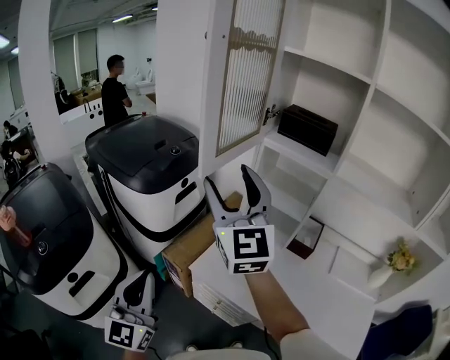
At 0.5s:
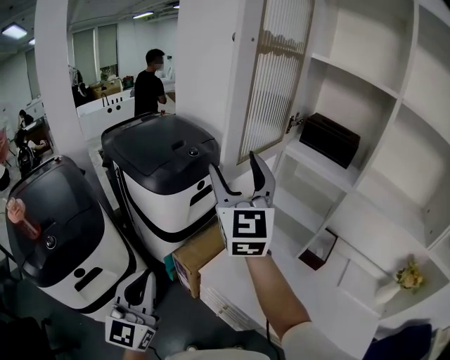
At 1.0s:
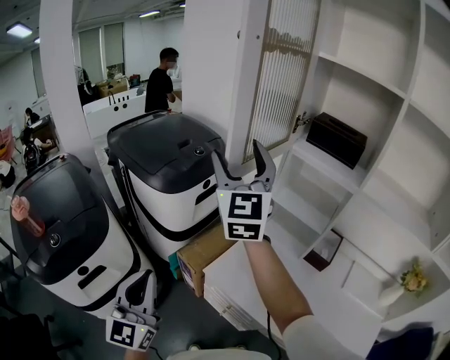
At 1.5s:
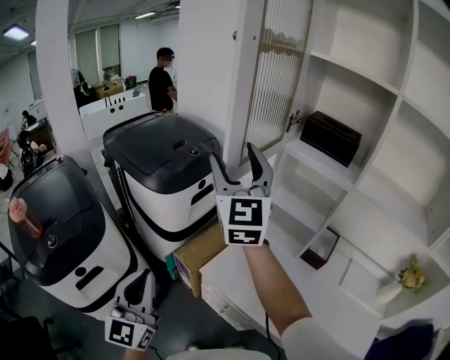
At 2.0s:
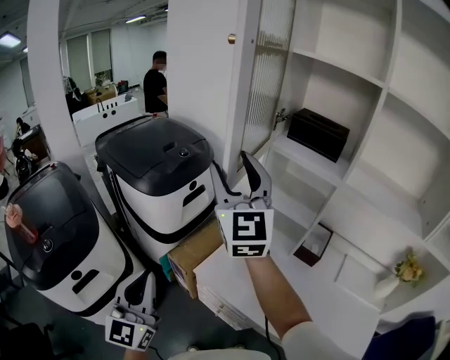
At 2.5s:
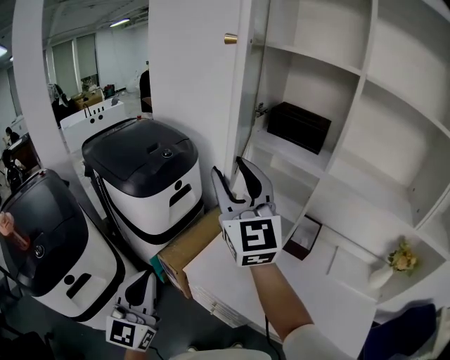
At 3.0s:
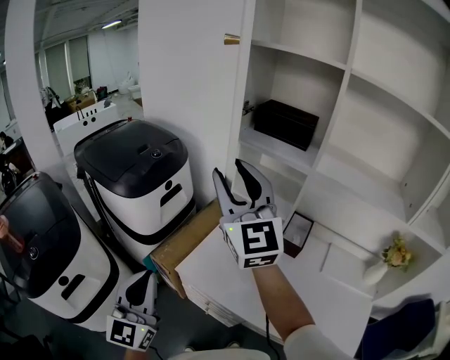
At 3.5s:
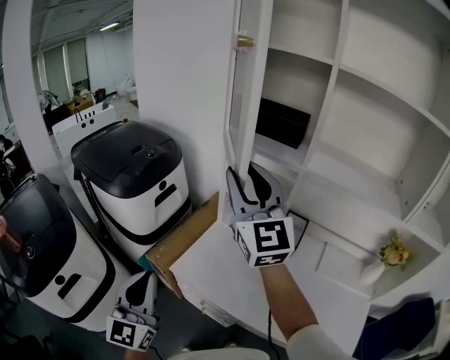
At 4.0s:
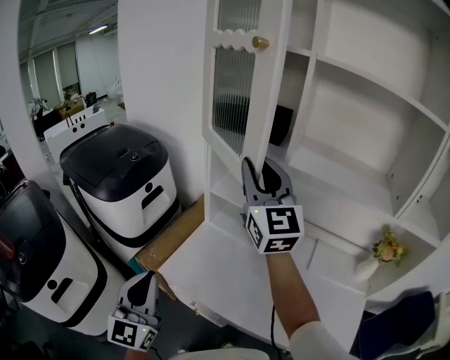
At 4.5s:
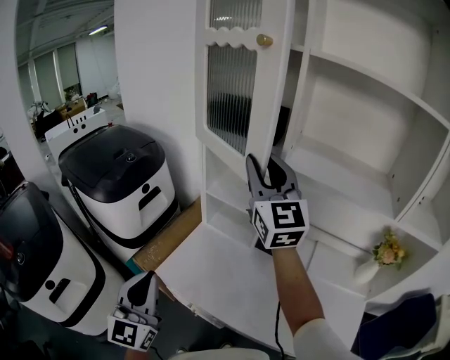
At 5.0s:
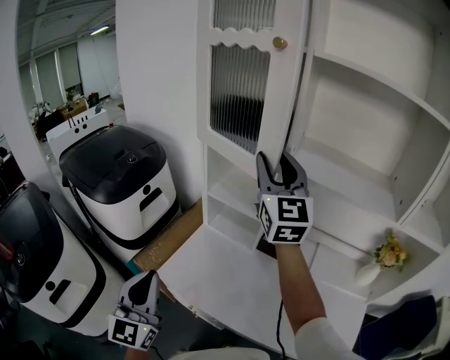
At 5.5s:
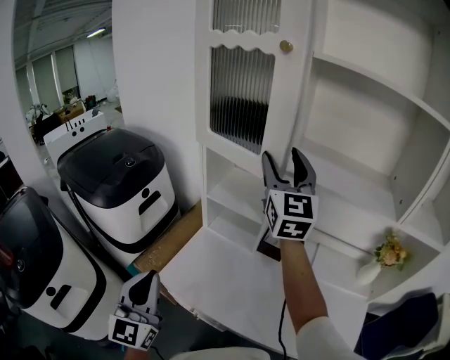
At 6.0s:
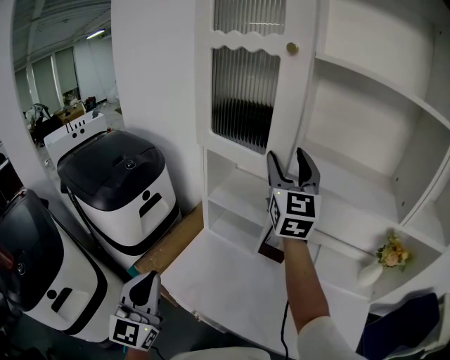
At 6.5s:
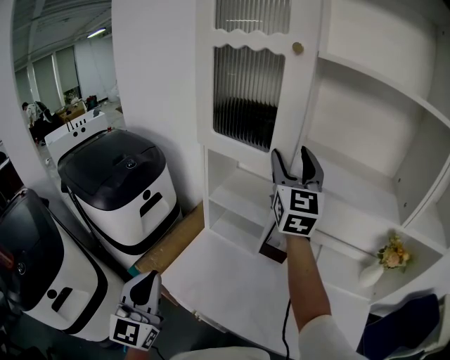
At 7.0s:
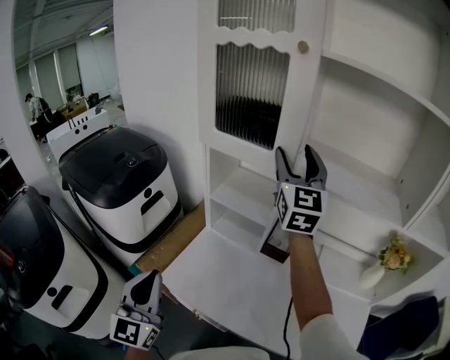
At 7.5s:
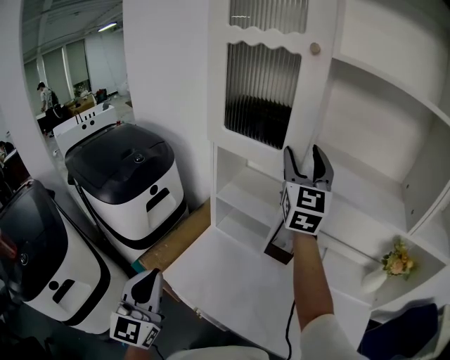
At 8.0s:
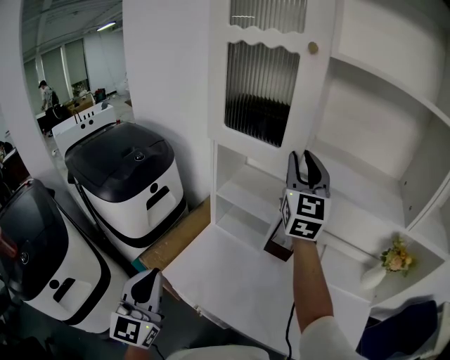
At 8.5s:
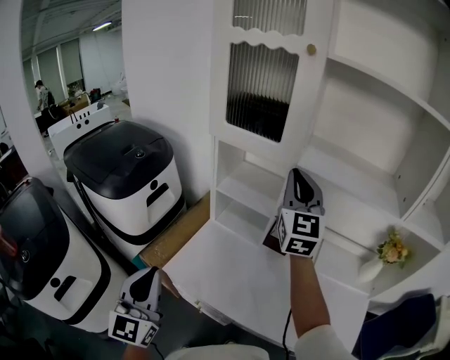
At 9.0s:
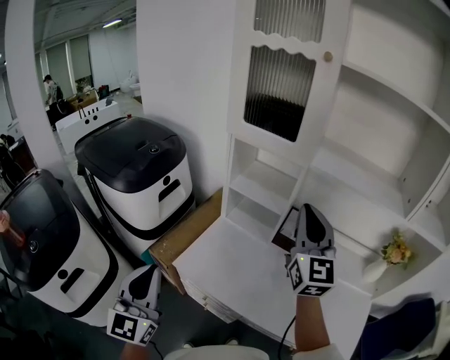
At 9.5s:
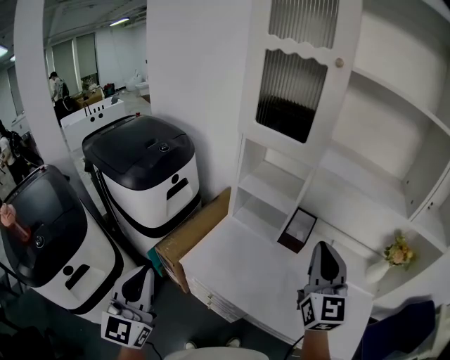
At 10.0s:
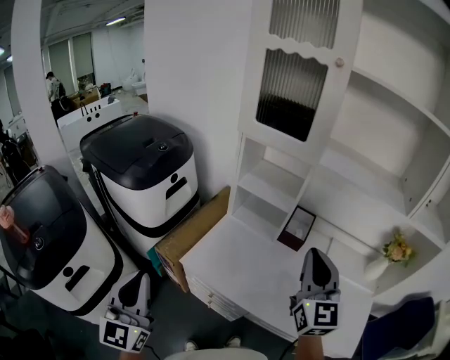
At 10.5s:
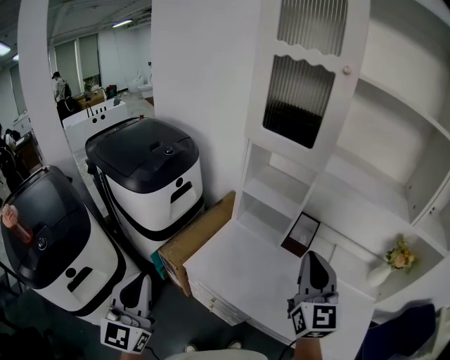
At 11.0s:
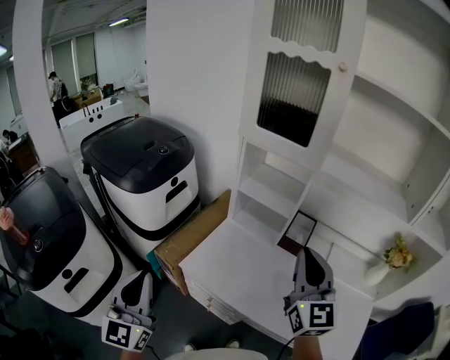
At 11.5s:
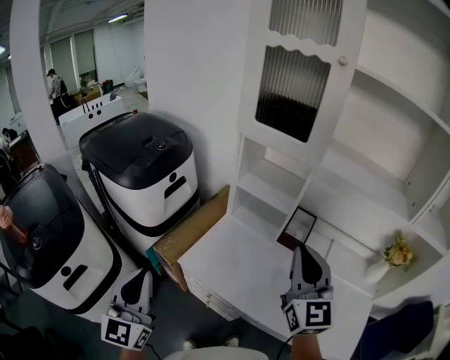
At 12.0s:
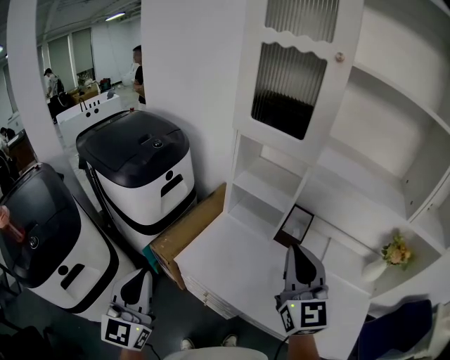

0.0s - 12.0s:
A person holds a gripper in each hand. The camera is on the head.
2.0s - 4.0s: The right gripper travels to the right by roughly 25 cm, and closes its fingers. The left gripper travels to the right by approximately 15 cm.
4.0s - 6.0s: The right gripper goes some 10 cm to the right and forward, and opens.
6.0s - 8.0s: The right gripper closes its fingers.
8.0s - 10.0s: The left gripper heads backward and to the left, covering approximately 15 cm. The right gripper moves backward and downward, roughly 30 cm, and closes.
10.0s - 12.0s: The grippers stay close to where they were, moving slightly.

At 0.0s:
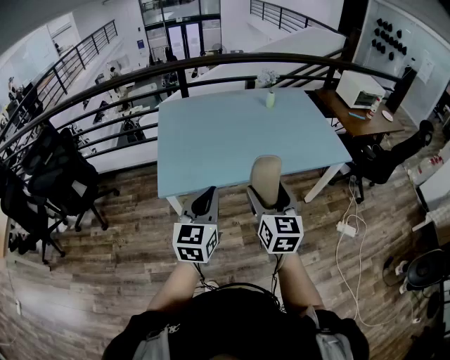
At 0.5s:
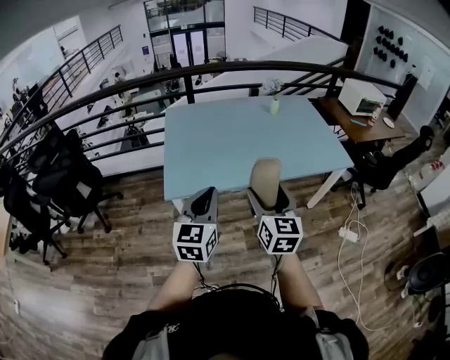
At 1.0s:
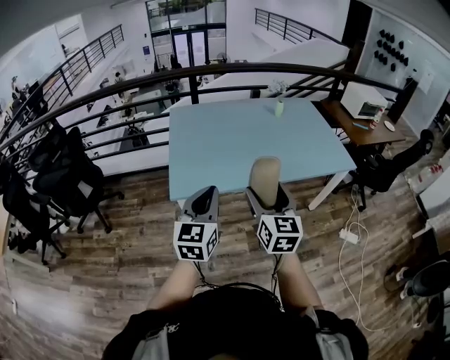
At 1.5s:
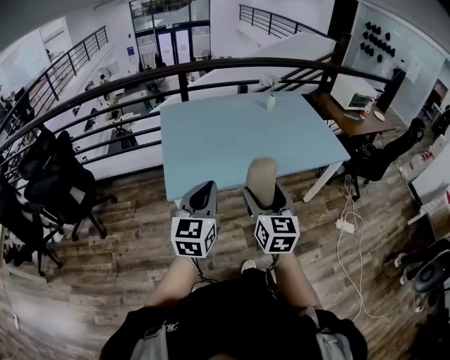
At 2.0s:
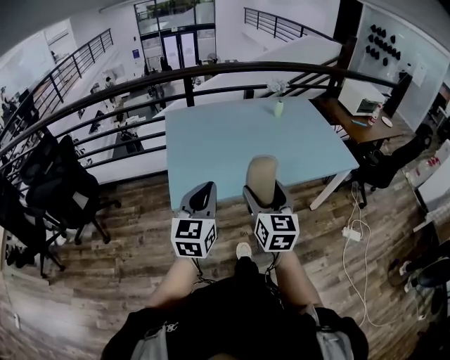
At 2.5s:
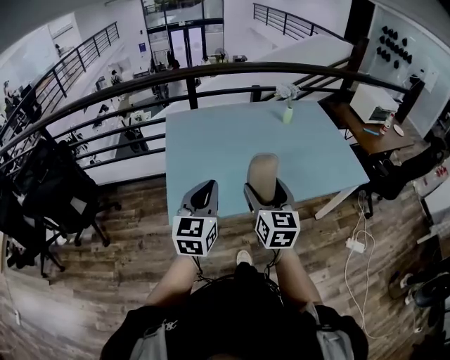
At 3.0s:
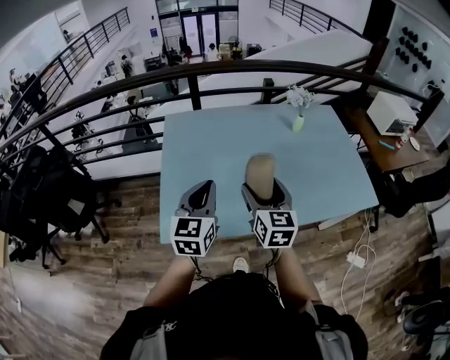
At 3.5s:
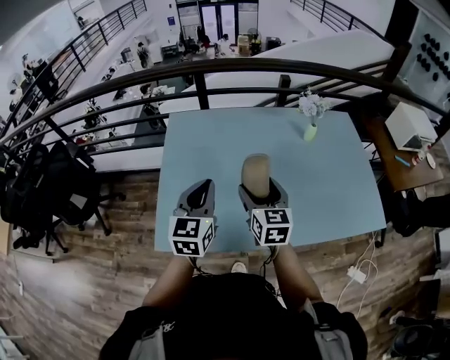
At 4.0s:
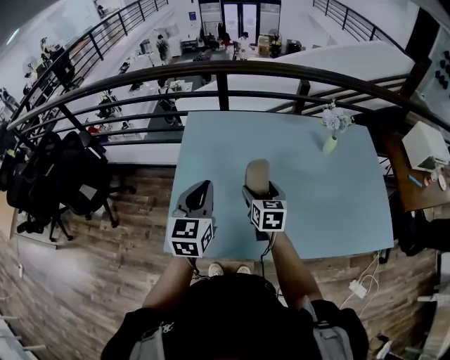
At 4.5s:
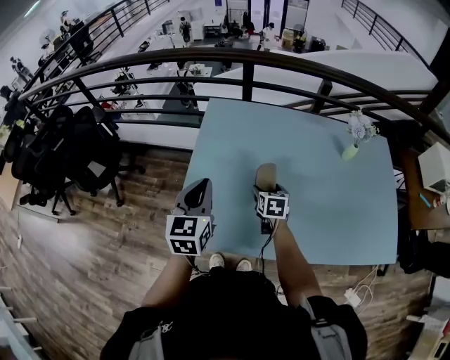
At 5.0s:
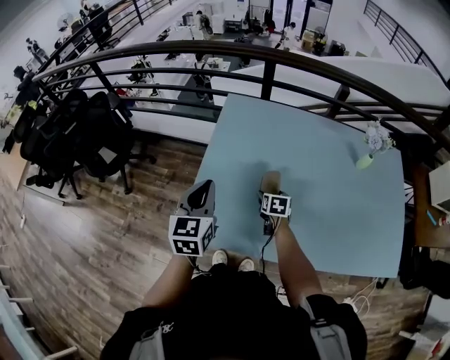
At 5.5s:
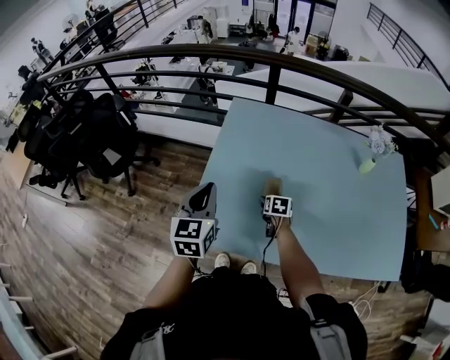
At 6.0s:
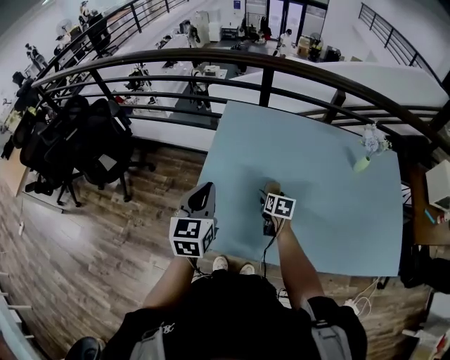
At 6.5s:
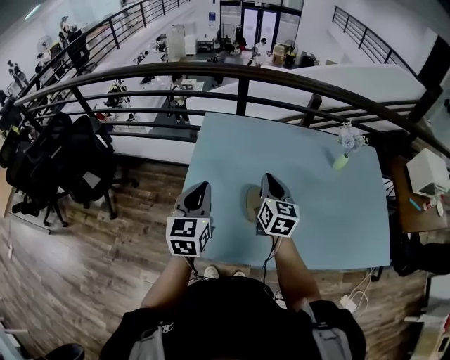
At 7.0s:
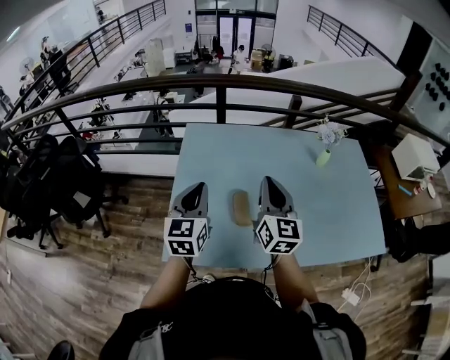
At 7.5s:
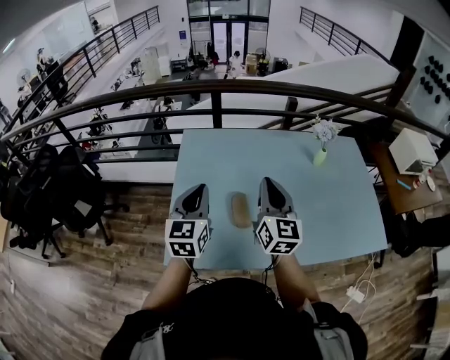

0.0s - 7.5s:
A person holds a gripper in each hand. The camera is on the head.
0.0s - 2.0s: Both grippers move to the left, roughly 10 cm.
2.0s - 4.0s: Both grippers move forward, some 35 cm. The left gripper rotates about 20 degrees; the right gripper swivels some 30 degrees.
4.0s - 5.5s: The left gripper is displaced to the left by about 10 cm. The right gripper goes roughly 20 cm downward, and turns by some 30 degrees.
5.5s - 7.5s: The right gripper is displaced upward by approximately 35 cm, tilts its fingers approximately 60 degrees upward, and closes its fingers. Meanwhile the left gripper travels to the right and upward by approximately 10 cm.

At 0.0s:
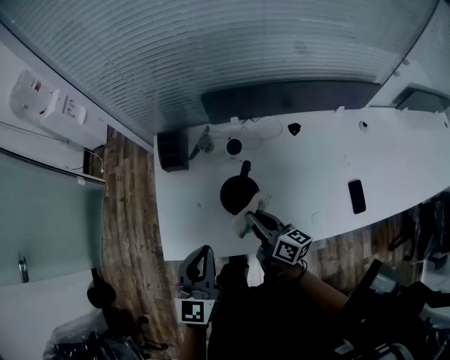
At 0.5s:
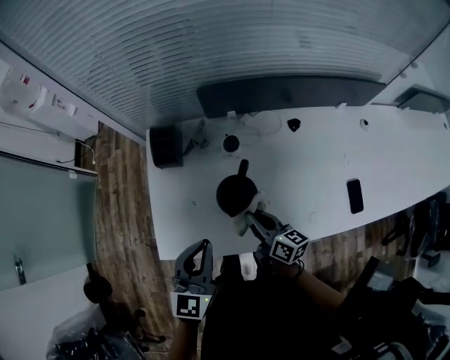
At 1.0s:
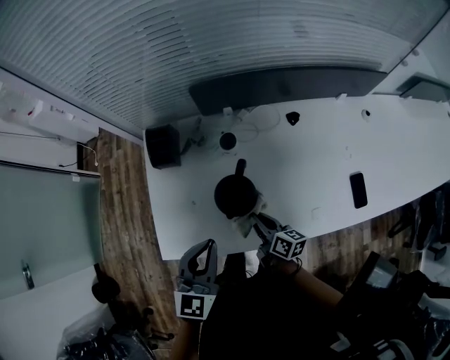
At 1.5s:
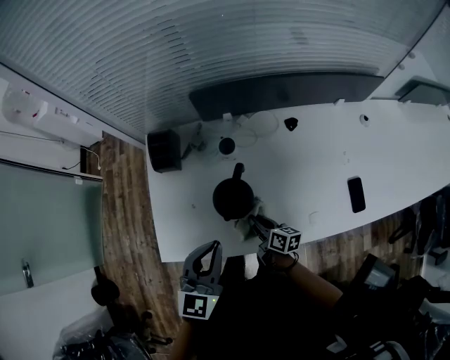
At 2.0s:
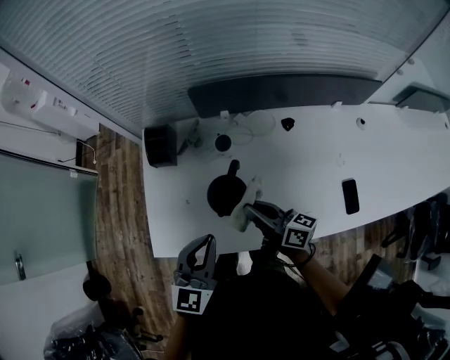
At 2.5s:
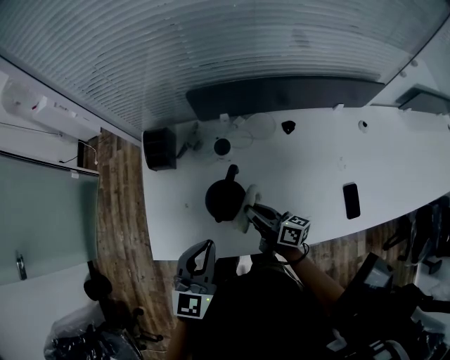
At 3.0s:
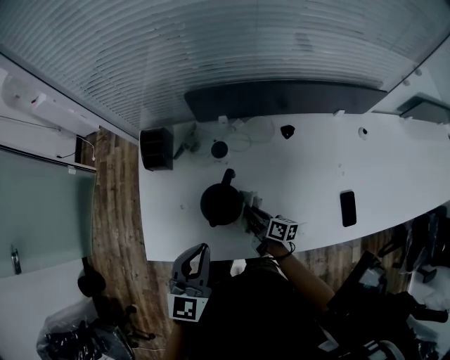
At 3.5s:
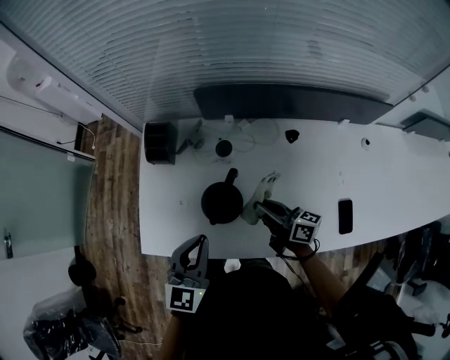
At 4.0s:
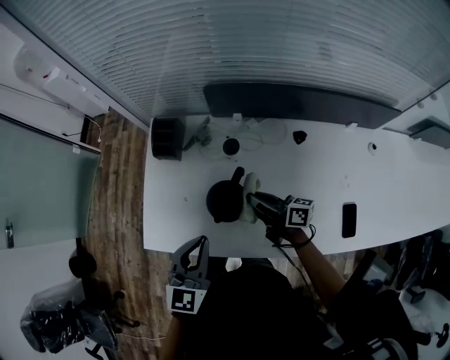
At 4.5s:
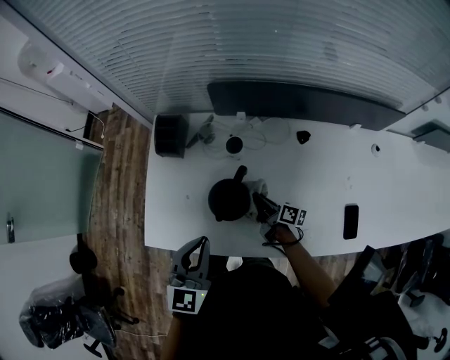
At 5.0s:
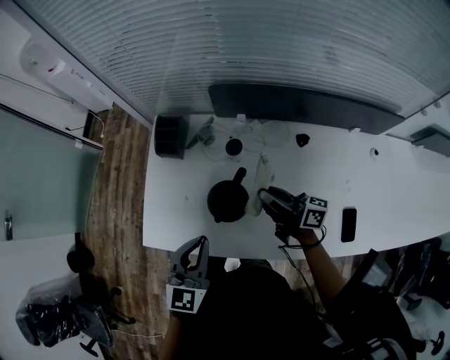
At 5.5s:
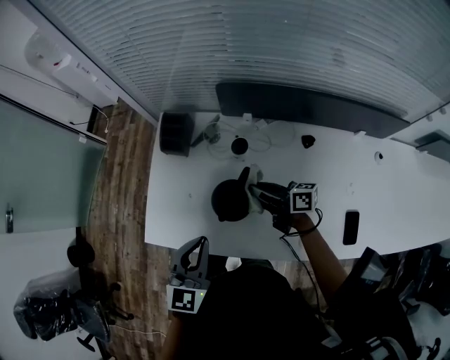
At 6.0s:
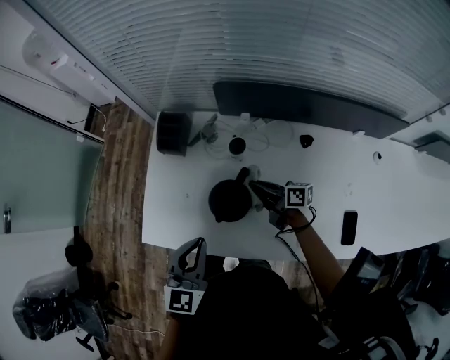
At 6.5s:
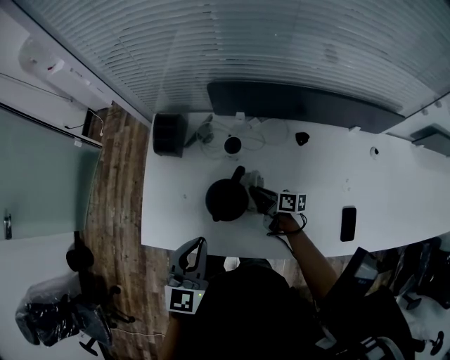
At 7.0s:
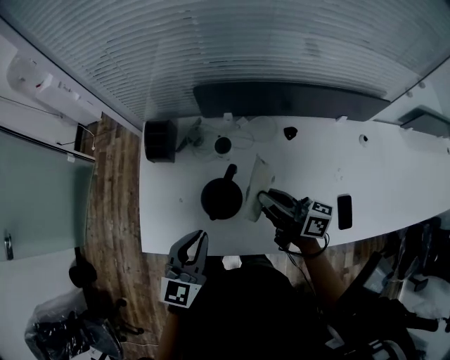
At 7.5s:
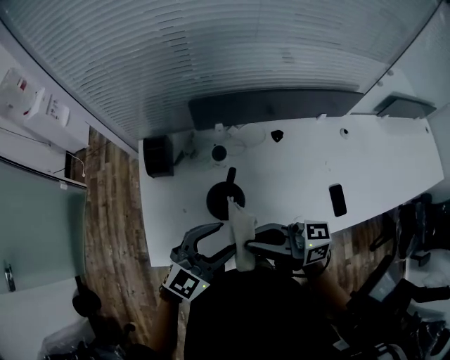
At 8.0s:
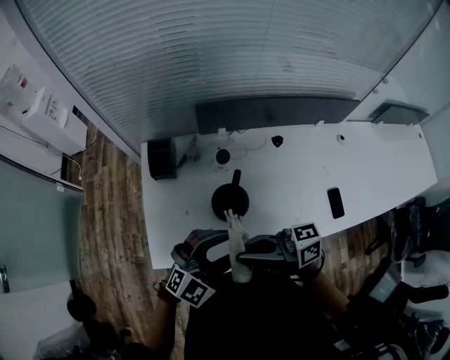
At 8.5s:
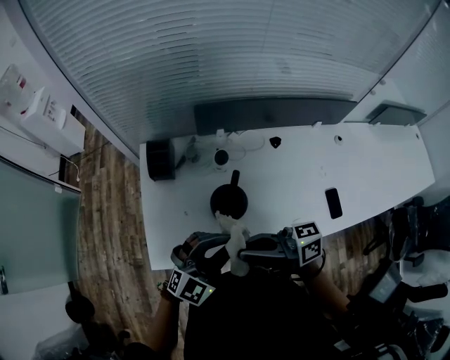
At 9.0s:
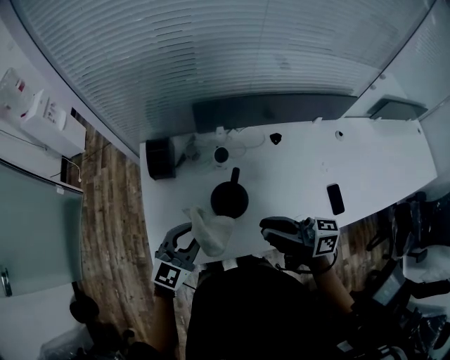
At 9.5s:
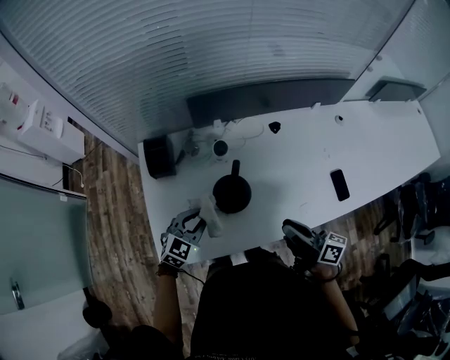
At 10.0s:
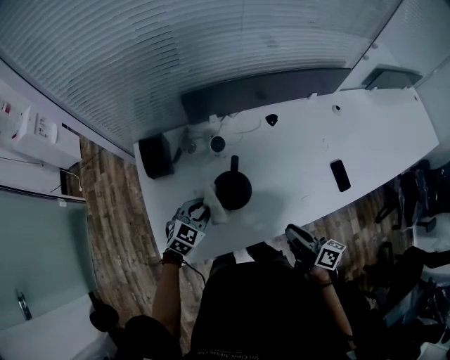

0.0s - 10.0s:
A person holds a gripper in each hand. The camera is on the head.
0.0s - 2.0s: The right gripper reaches some 15 cm downward, then returns, while the left gripper is displaced to the right by approximately 5 cm.
2.0s - 4.0s: The right gripper moves forward, some 5 cm, and reaches approximately 20 cm downward, then returns.
4.0s - 6.0s: The right gripper moves up and down over approximately 20 cm, changing direction 2 times.
6.0s - 8.0s: The right gripper goes approximately 25 cm upward, and rotates some 30 degrees. The left gripper changes place by about 10 cm, changes its angle by approximately 60 degrees, and opens its fingers.
8.0s - 10.0s: The two grippers go about 20 cm downward. The right gripper rotates some 60 degrees. The left gripper changes its angle by about 30 degrees, and closes up.
